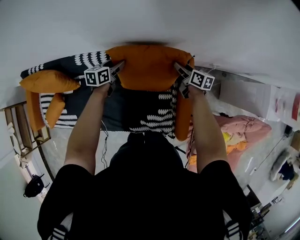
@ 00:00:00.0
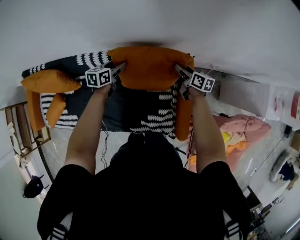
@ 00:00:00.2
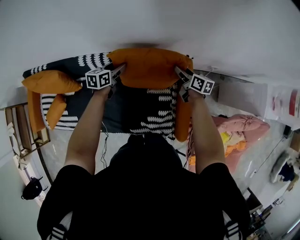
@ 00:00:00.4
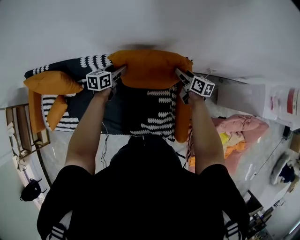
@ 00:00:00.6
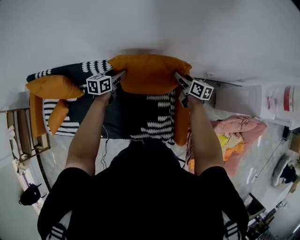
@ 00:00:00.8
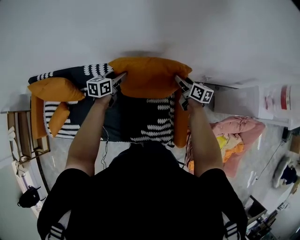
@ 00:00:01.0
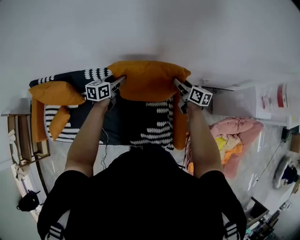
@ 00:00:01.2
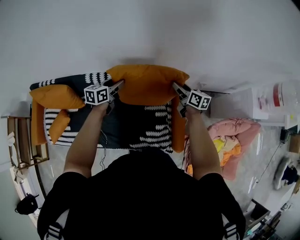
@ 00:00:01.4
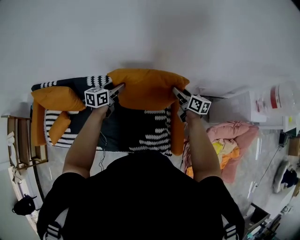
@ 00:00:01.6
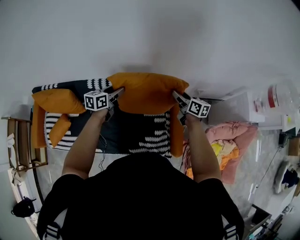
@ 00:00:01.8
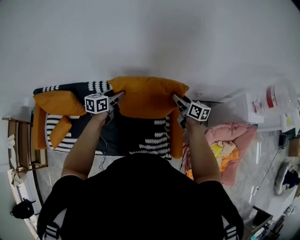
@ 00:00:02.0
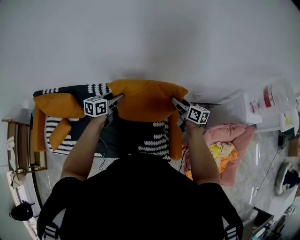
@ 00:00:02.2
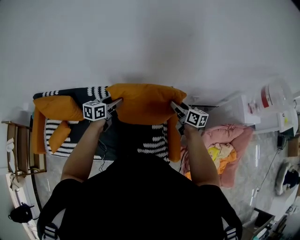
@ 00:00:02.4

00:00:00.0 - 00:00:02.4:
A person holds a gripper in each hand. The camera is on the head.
00:00:00.0 - 00:00:01.2: Both grippers travel together upward and backward, approximately 15 cm.
00:00:01.2 - 00:00:02.4: Both grippers move backward and upward, roughly 15 cm.

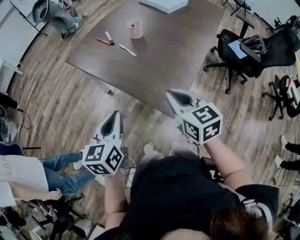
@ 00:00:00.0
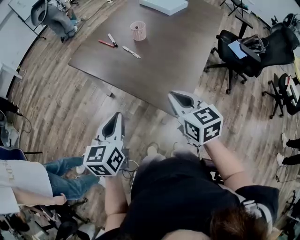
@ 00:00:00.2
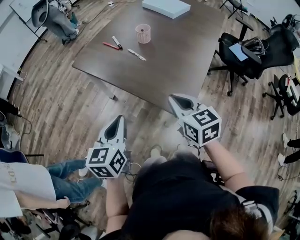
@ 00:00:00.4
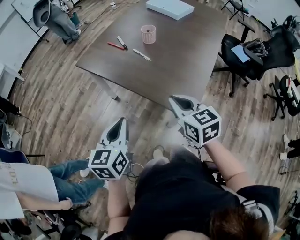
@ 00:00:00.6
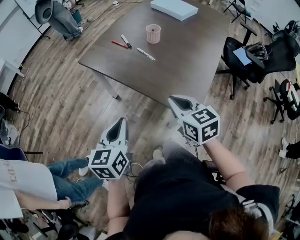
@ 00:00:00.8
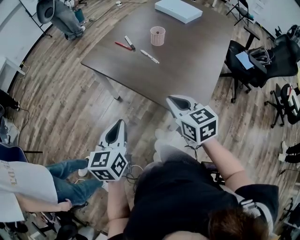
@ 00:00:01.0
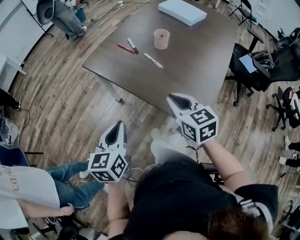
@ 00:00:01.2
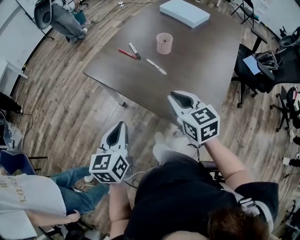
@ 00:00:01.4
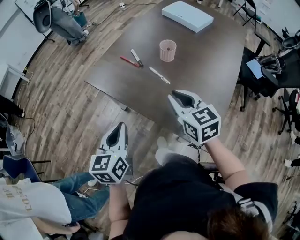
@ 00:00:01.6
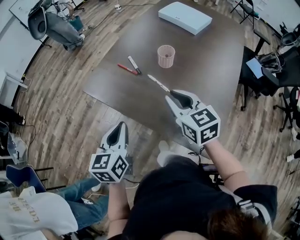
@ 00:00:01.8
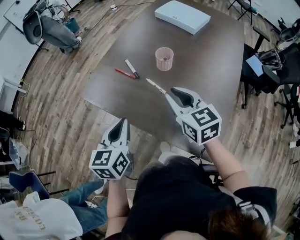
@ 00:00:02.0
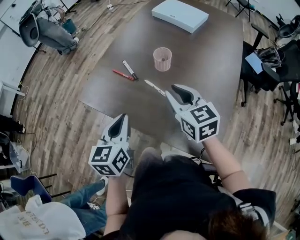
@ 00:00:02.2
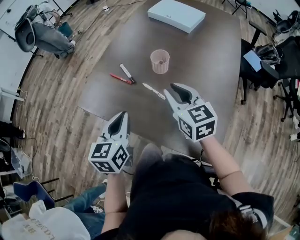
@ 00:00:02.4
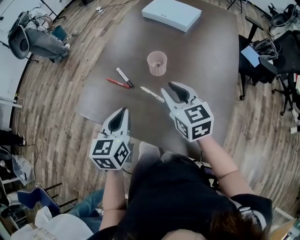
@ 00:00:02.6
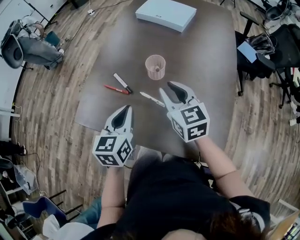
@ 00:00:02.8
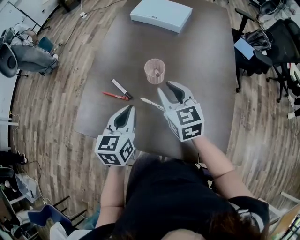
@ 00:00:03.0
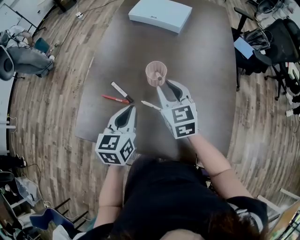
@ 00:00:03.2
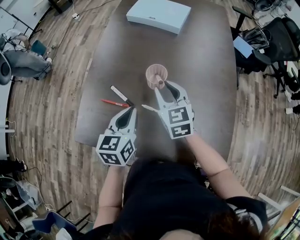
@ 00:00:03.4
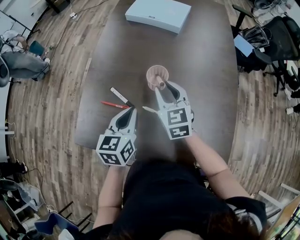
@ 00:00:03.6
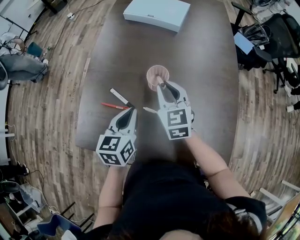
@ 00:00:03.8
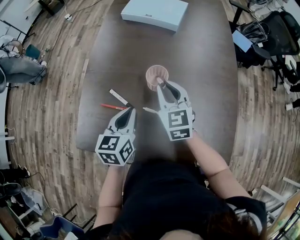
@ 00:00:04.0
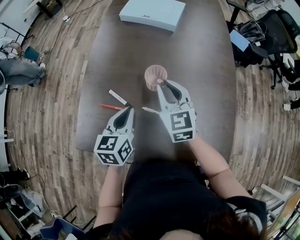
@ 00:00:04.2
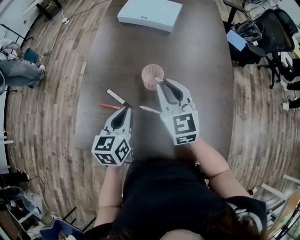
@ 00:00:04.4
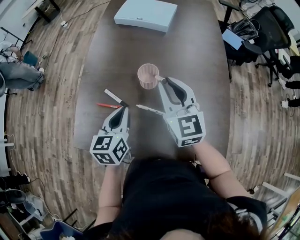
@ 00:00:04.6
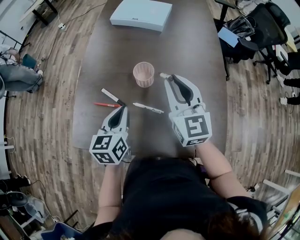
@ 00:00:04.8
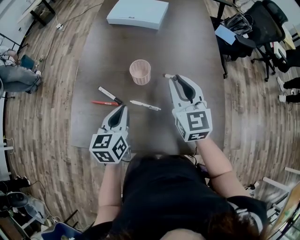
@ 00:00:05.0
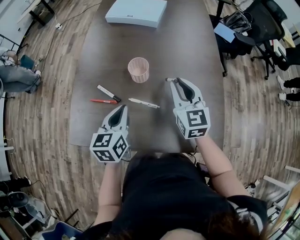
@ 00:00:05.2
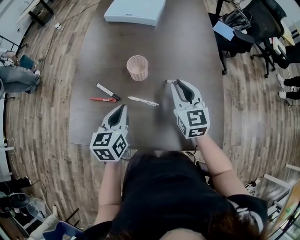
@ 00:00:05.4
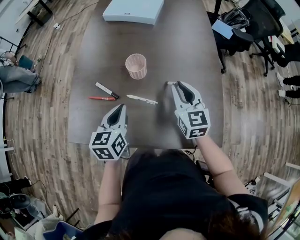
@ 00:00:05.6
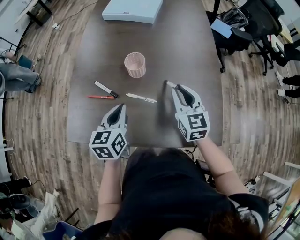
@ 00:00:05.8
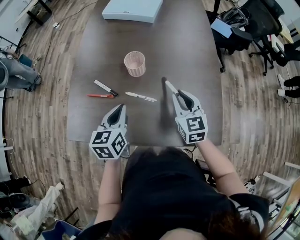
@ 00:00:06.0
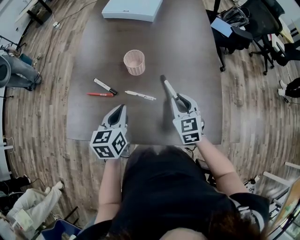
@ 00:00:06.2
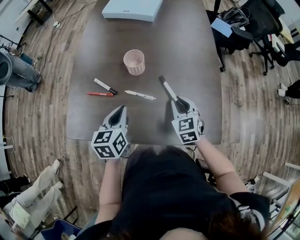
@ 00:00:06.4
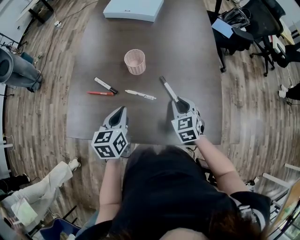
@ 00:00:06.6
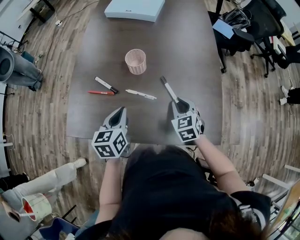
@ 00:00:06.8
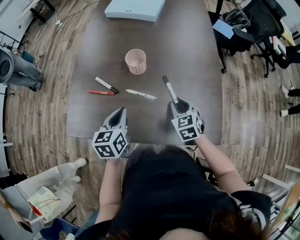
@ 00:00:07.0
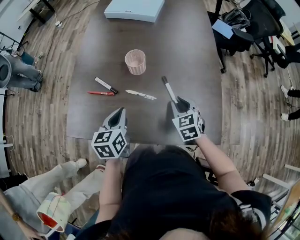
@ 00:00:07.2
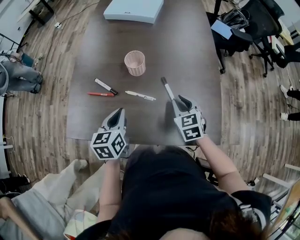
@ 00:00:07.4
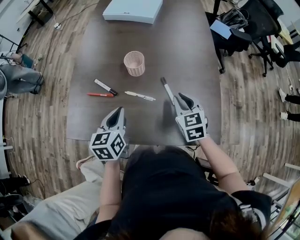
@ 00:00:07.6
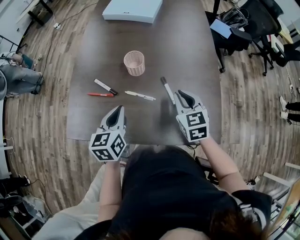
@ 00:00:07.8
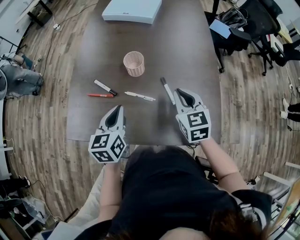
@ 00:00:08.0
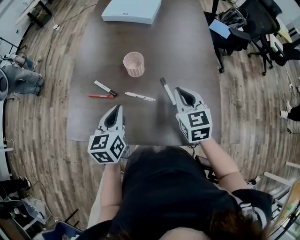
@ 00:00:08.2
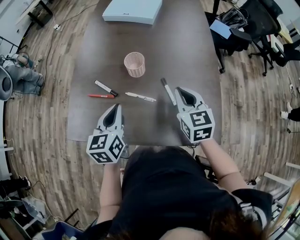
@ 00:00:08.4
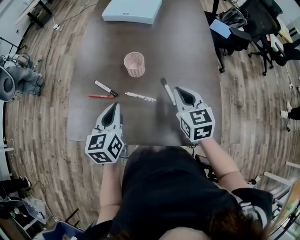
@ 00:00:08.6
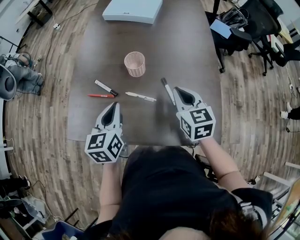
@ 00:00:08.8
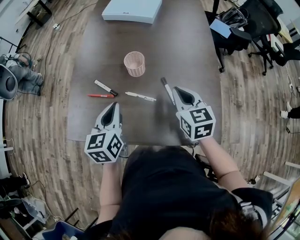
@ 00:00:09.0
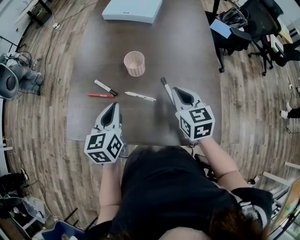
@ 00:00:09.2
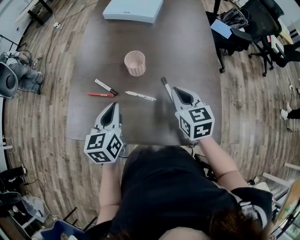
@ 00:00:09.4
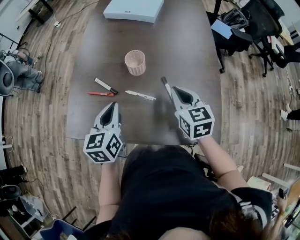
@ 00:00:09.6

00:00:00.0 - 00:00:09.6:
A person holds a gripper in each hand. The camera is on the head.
00:00:00.0 - 00:00:01.6: Both grippers move forward and to the left, roughly 25 cm.
00:00:01.6 - 00:00:03.2: The right gripper shifts by roughly 25 cm, and rotates approximately 30 degrees. Meanwhile the left gripper changes place by approximately 30 cm, and rotates about 30 degrees.
00:00:03.2 - 00:00:04.8: The right gripper travels upward and to the right by about 10 cm.
00:00:04.8 - 00:00:06.4: The left gripper moves some 5 cm, while the right gripper goes approximately 25 cm downward, backward and to the right, and changes its angle by approximately 30 degrees.
00:00:06.4 - 00:00:08.0: The right gripper travels upward by roughly 10 cm.
00:00:08.0 - 00:00:09.6: The grippers stay close to where they were, moving slightly.

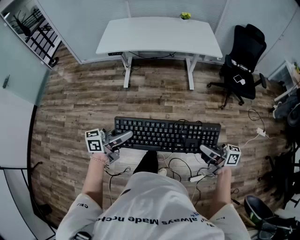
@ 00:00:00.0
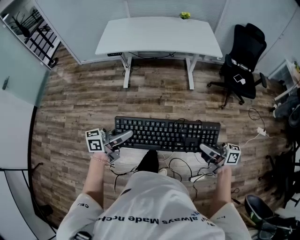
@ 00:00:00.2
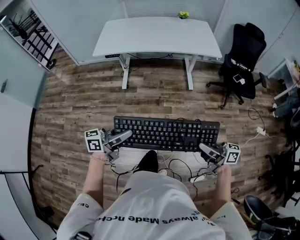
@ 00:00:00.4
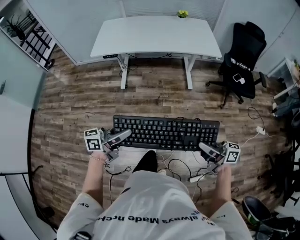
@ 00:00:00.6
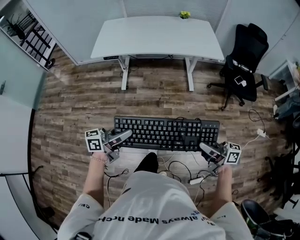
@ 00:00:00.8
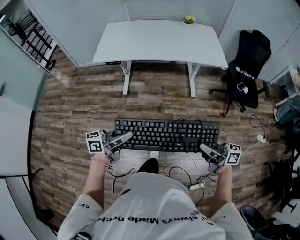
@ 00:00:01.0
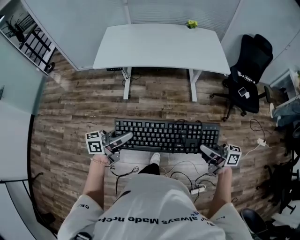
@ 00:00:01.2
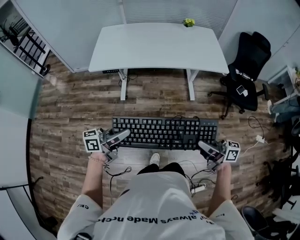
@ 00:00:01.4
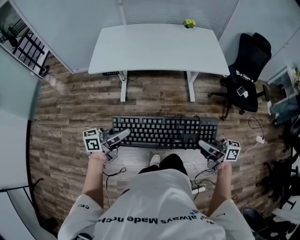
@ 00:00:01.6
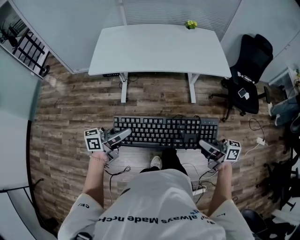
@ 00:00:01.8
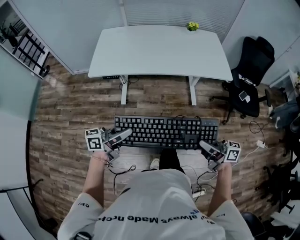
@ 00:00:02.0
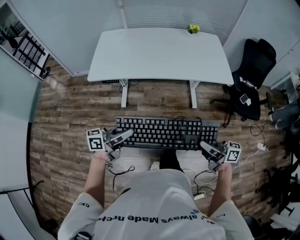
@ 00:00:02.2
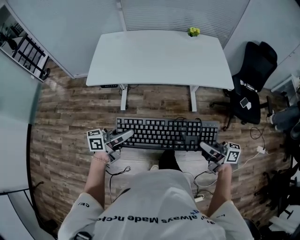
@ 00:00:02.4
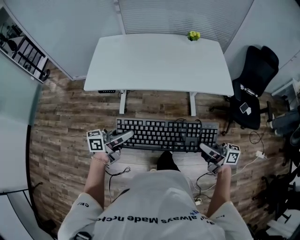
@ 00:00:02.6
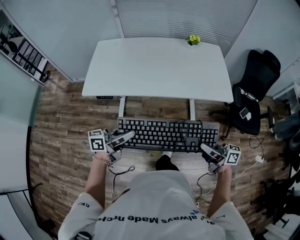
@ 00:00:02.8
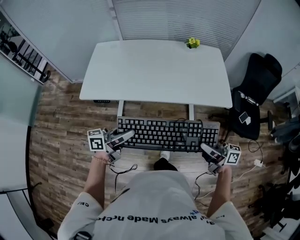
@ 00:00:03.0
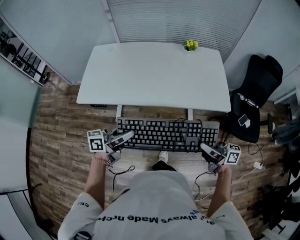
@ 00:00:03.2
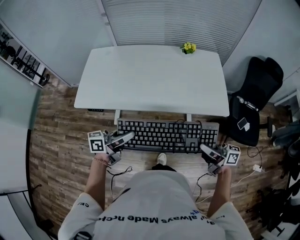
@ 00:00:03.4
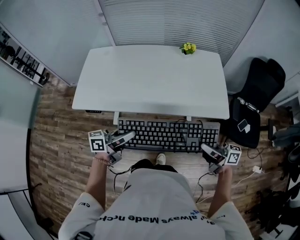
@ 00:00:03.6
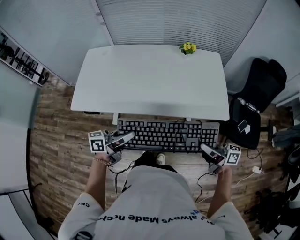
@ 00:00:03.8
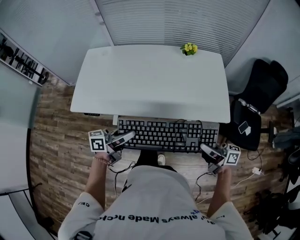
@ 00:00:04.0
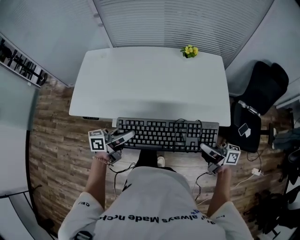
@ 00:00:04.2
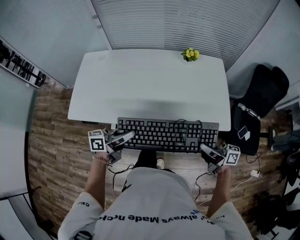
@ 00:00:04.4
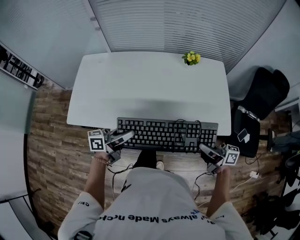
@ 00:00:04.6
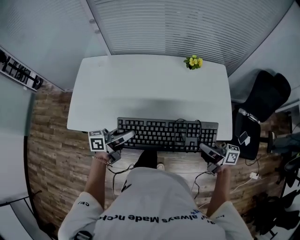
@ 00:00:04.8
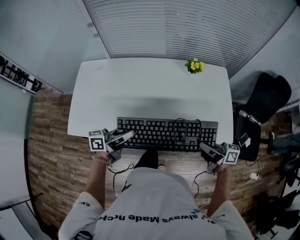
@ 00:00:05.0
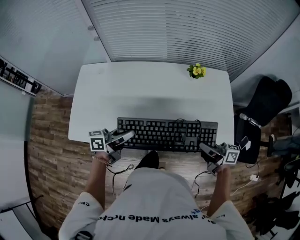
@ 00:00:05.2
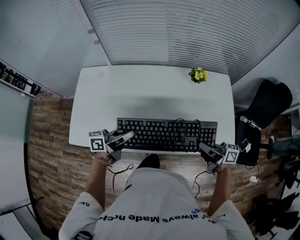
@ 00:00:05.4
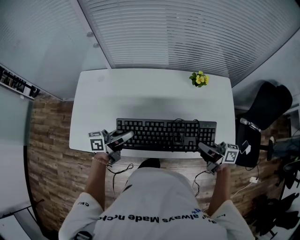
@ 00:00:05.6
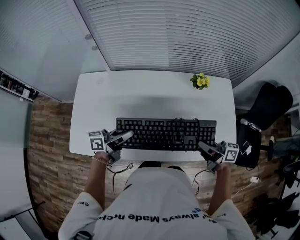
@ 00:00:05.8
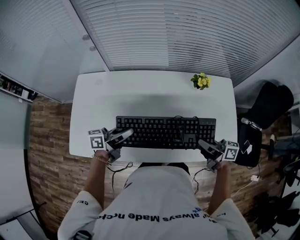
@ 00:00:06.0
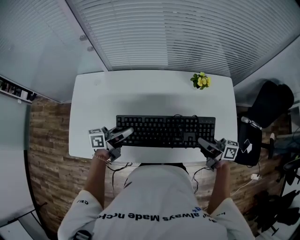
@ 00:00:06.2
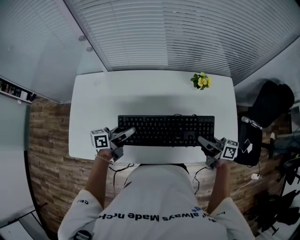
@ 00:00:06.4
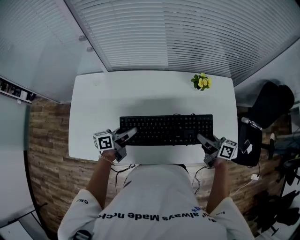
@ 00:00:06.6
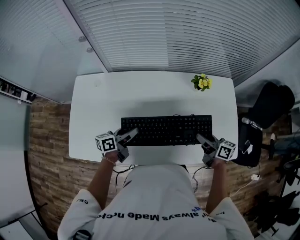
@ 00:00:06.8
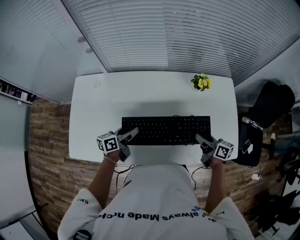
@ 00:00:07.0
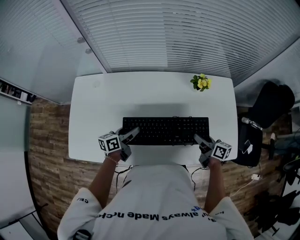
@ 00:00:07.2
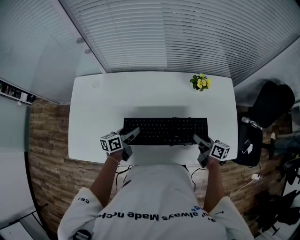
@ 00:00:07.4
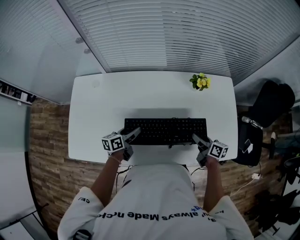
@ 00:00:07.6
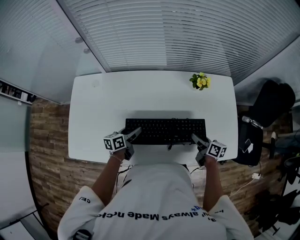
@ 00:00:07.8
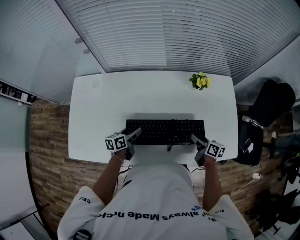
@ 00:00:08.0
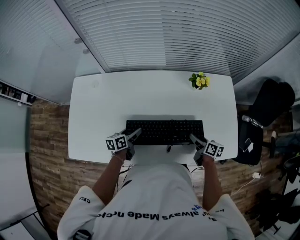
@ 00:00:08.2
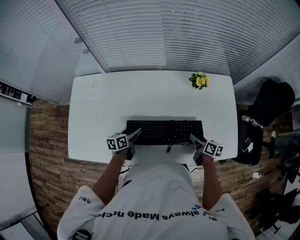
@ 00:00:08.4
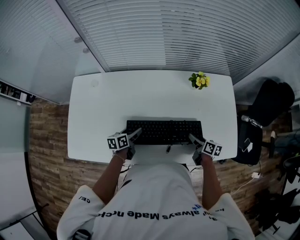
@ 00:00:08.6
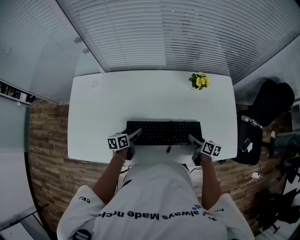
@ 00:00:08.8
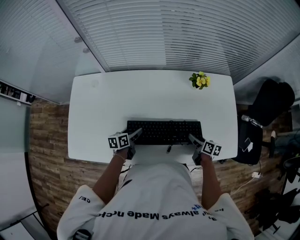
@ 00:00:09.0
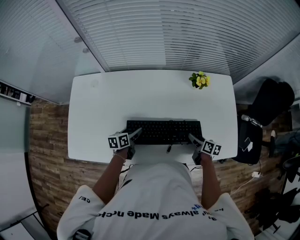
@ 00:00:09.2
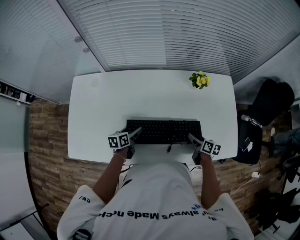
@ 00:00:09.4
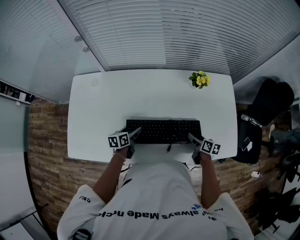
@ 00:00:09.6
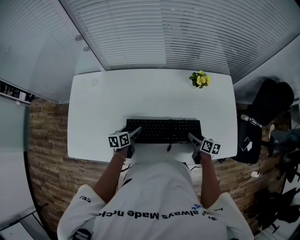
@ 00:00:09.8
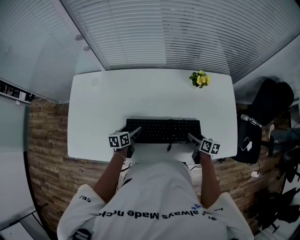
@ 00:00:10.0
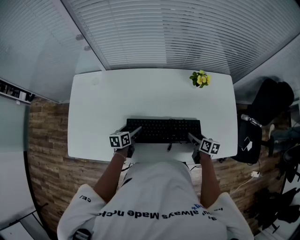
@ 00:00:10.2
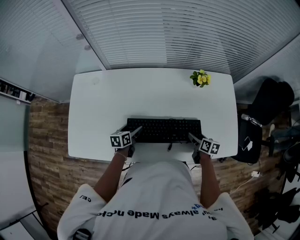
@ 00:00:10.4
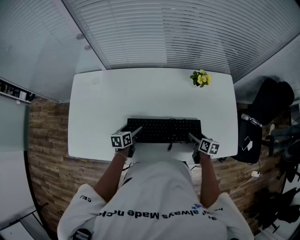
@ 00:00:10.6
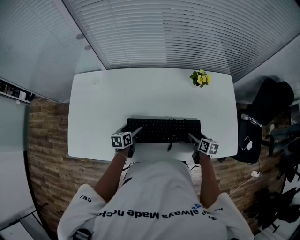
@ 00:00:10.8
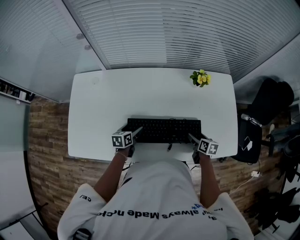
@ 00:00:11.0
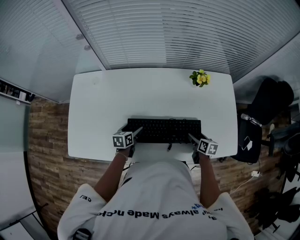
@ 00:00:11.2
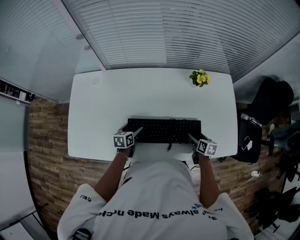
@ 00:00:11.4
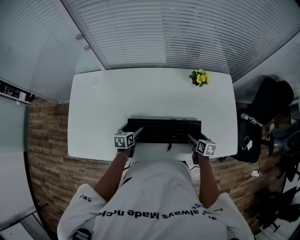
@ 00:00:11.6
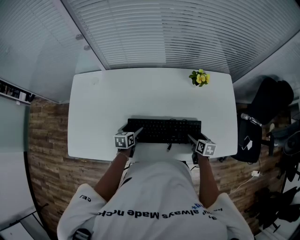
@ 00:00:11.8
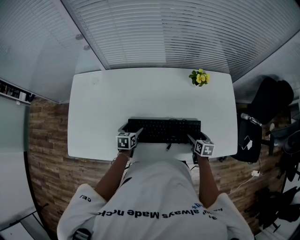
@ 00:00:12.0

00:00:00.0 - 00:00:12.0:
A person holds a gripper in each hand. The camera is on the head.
00:00:00.0 - 00:00:01.6: The two grippers go roughly 25 cm forward.
00:00:01.6 - 00:00:03.0: The two grippers go roughly 25 cm forward.
00:00:03.0 - 00:00:04.4: Both grippers travel together forward and to the right, about 15 cm.
00:00:04.4 - 00:00:06.0: Both grippers travel together forward, roughly 25 cm.
00:00:06.0 - 00:00:07.6: The grippers both shift downward by approximately 15 cm. The right gripper changes its angle by roughly 30 degrees, and opens its fingers. The left gripper rotates approximately 30 degrees, and opens.
00:00:07.6 - 00:00:09.0: The grippers both shift downward by roughly 5 cm.
00:00:09.0 - 00:00:10.4: The grippers stay close to where they were, moving slightly.
00:00:10.4 - 00:00:12.0: The grippers make only small movements.
